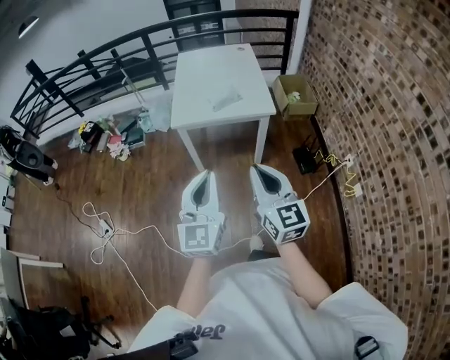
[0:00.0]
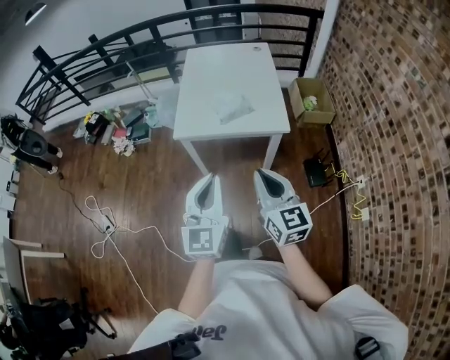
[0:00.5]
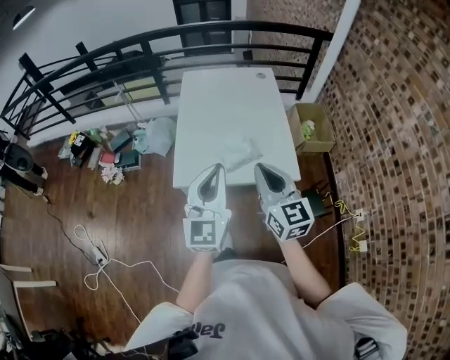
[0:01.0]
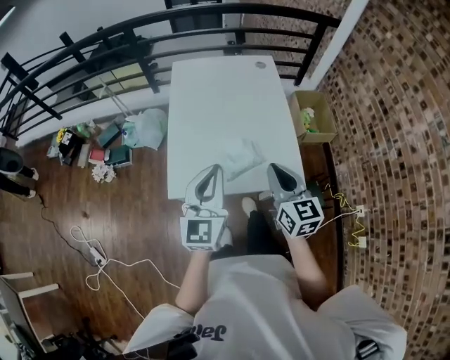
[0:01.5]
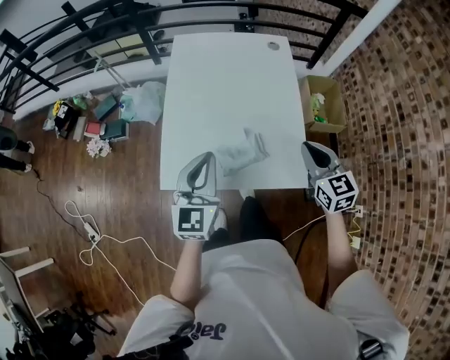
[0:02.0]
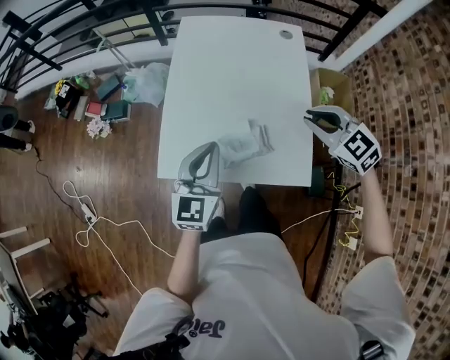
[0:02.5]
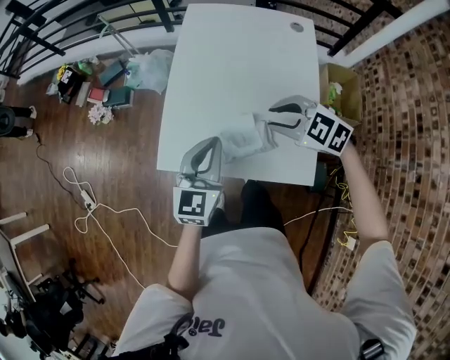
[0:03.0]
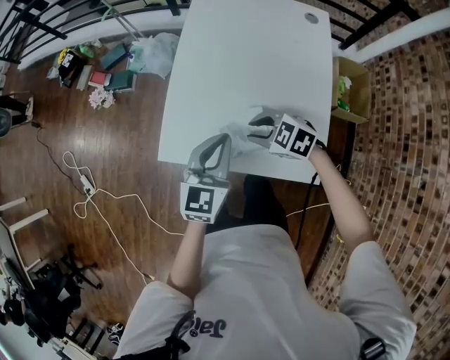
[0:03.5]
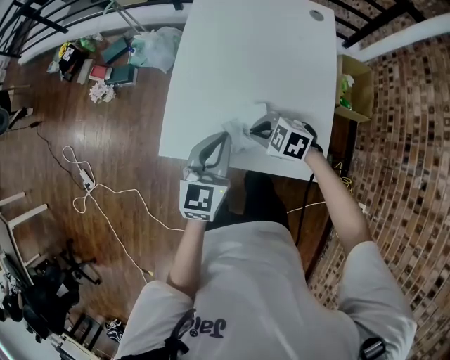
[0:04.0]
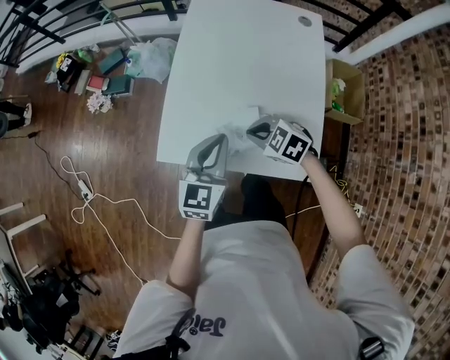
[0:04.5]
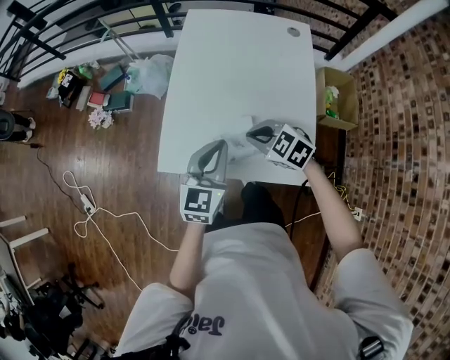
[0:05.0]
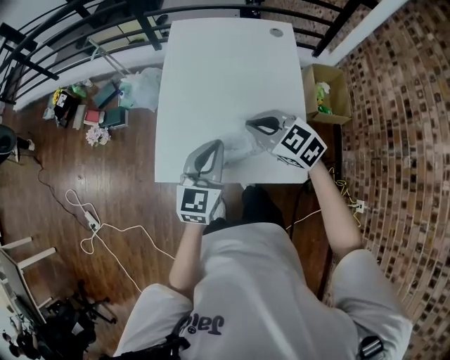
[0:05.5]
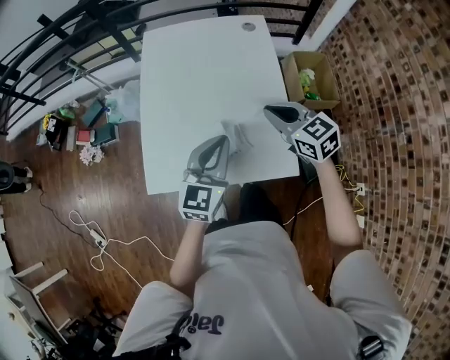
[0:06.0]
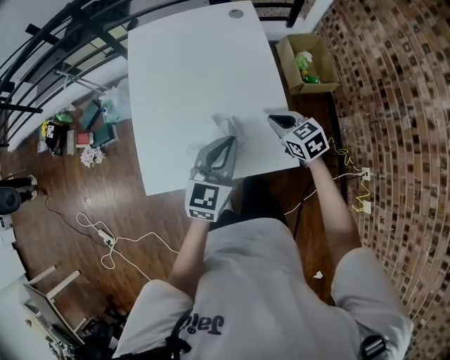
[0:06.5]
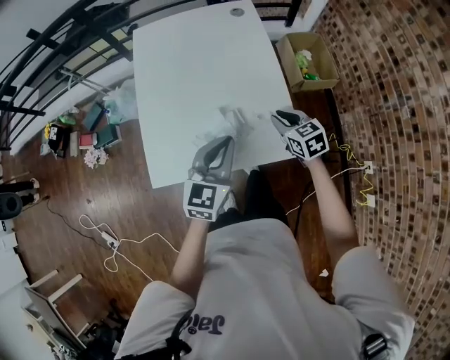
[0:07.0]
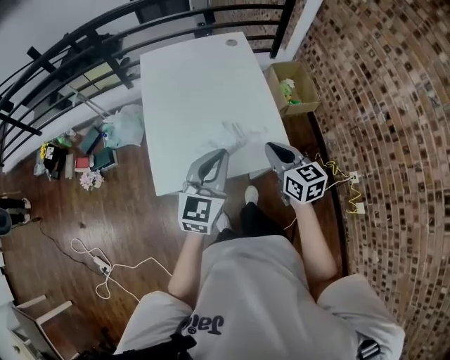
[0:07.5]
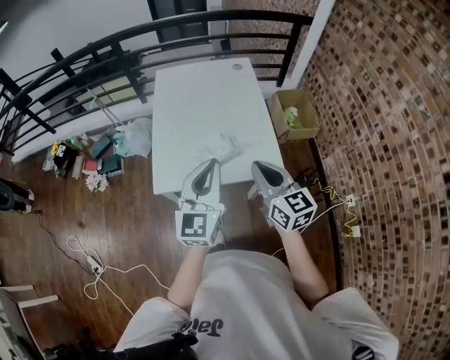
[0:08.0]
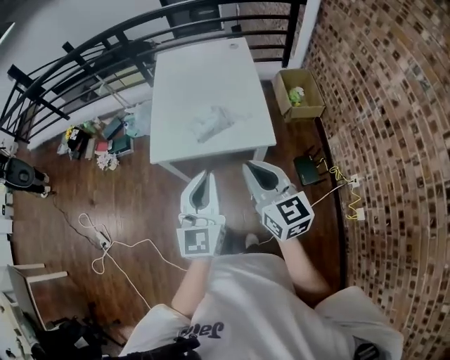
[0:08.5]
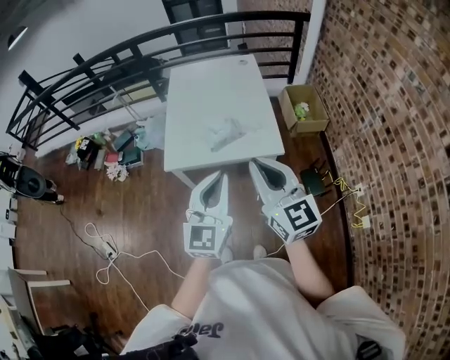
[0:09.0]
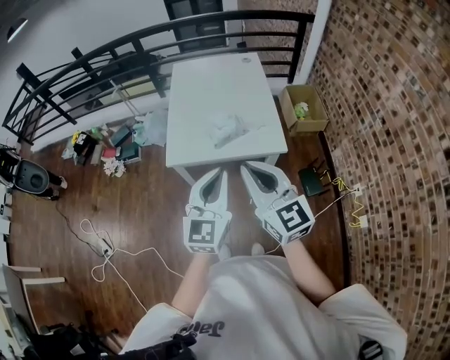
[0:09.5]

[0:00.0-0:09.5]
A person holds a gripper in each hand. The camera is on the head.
0:00.0 to 0:02.0: The two grippers travel together, forward, some 60 cm. The right gripper turns by about 30 degrees.
0:02.0 to 0:04.0: The left gripper travels downward by about 10 cm. Meanwhile the right gripper travels downward by roughly 20 cm, tilts its fingers about 30 degrees downward, and opens, then closes once more.
0:04.0 to 0:05.5: The right gripper moves upward, roughly 15 cm, and rotates roughly 30 degrees; the left gripper changes place by about 5 cm.
0:05.5 to 0:07.5: The left gripper changes place by some 10 cm. The right gripper travels downward and back again, approximately 10 cm each way, and changes its angle by some 50 degrees.
0:07.5 to 0:09.5: The right gripper goes approximately 30 cm backward and upward, and swivels about 30 degrees, while the left gripper shifts some 25 cm backward.

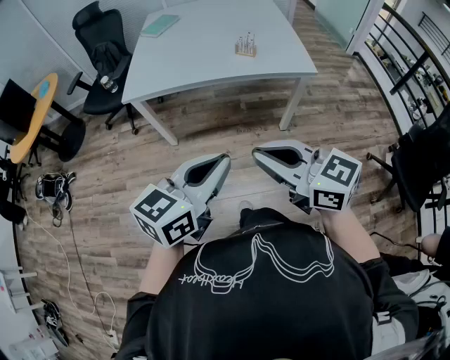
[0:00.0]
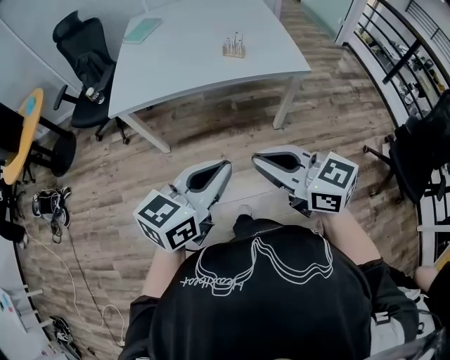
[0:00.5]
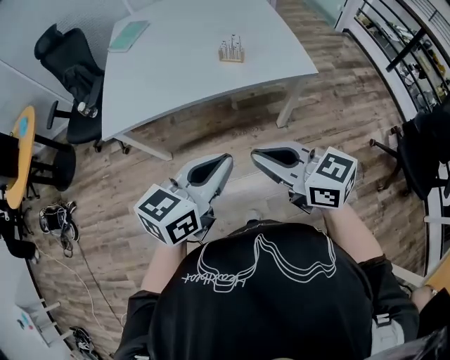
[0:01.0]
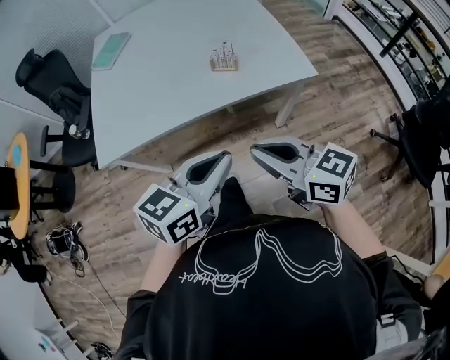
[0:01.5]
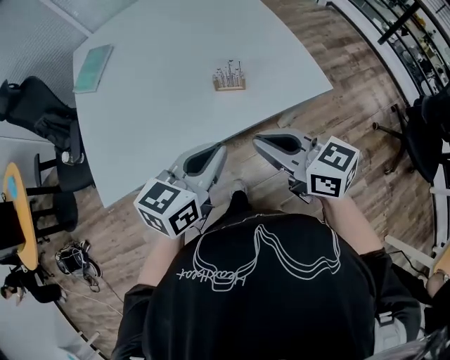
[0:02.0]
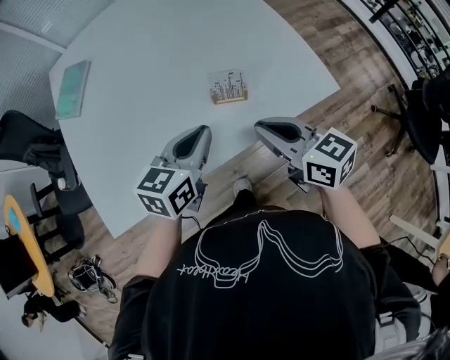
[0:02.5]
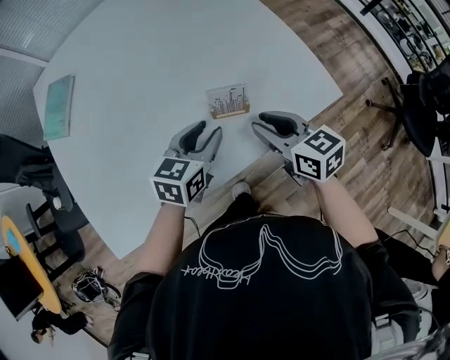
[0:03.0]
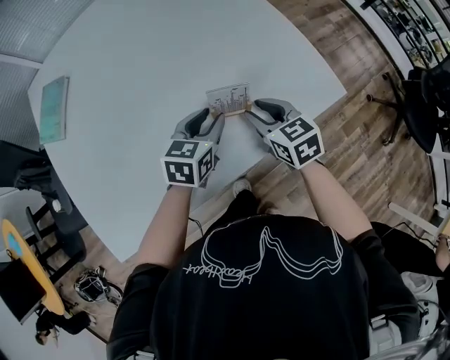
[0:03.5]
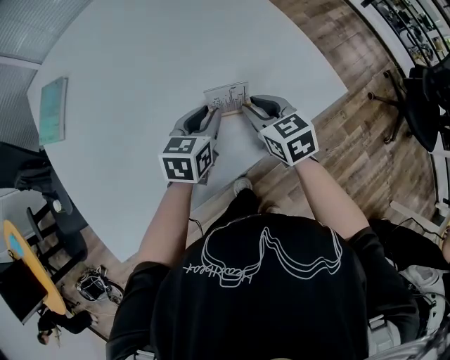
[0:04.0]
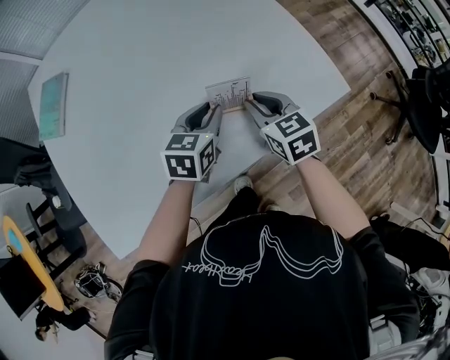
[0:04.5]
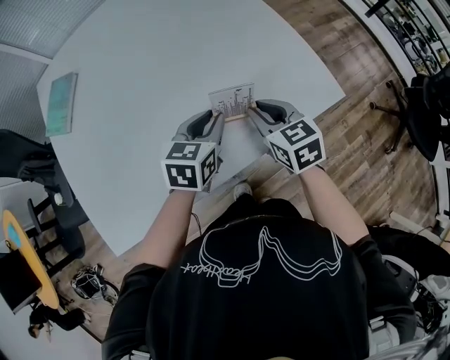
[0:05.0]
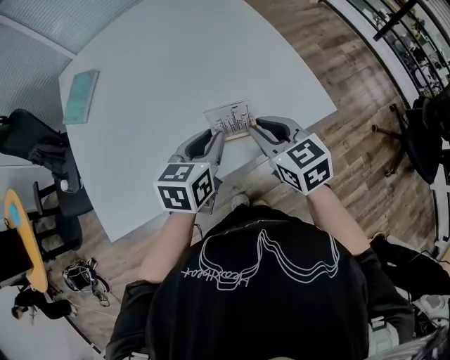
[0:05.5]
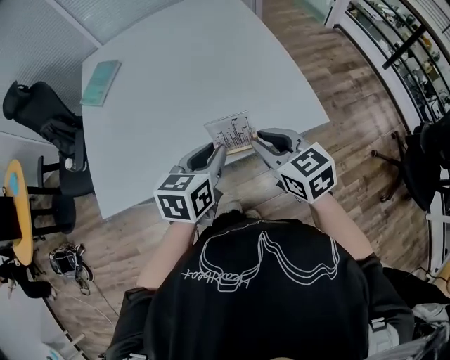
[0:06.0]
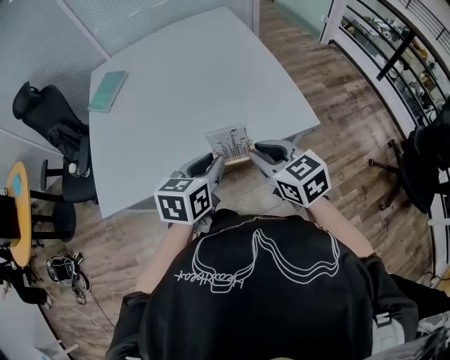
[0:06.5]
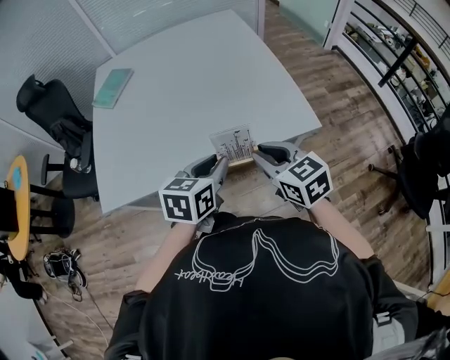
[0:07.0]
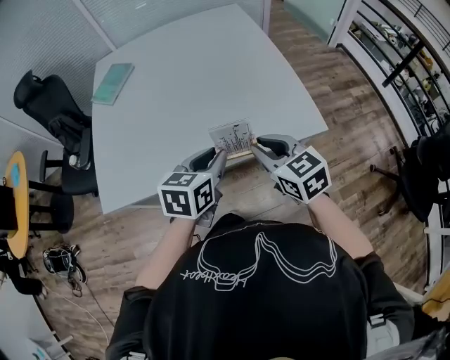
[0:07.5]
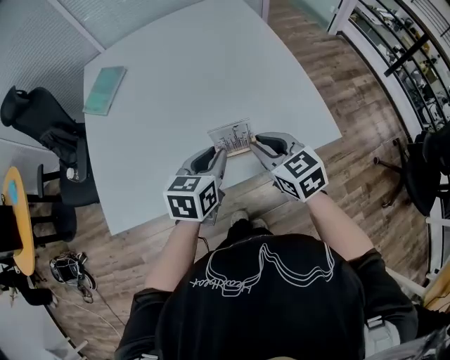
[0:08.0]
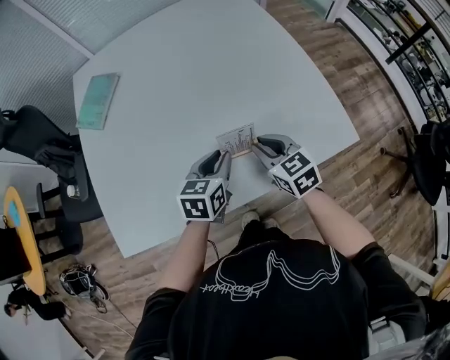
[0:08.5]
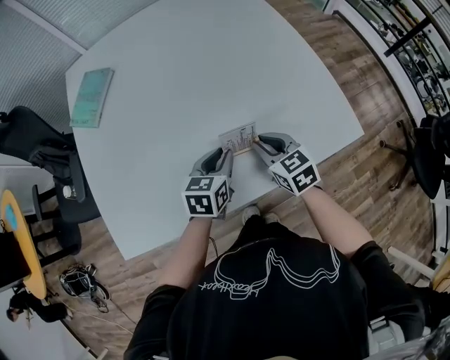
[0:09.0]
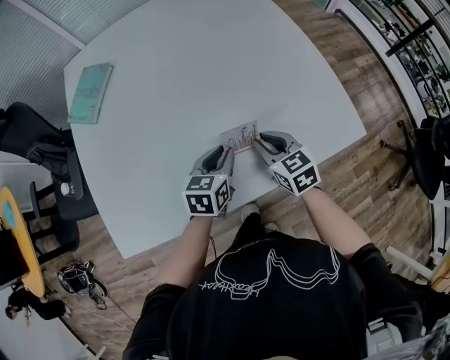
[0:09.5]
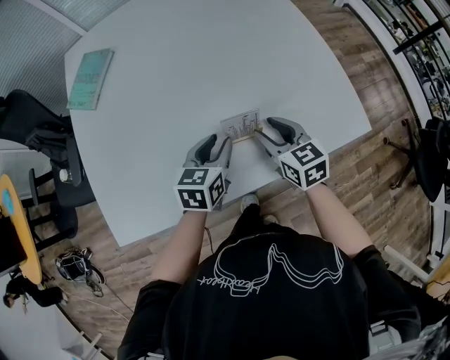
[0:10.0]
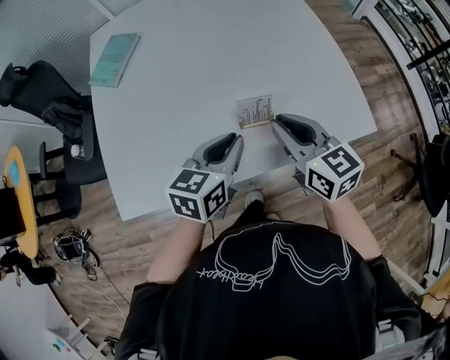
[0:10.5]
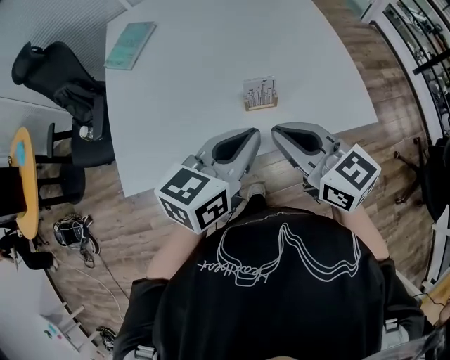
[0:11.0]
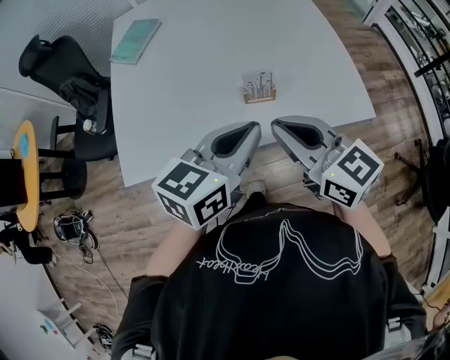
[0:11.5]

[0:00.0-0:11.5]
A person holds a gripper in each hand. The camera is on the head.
0:00.0 to 0:02.0: The pair of grippers is taken forward, some 50 cm. The right gripper swivels approximately 20 degrees.
0:02.0 to 0:04.0: Both grippers travel together forward and downward, about 30 cm. The right gripper swivels some 40 degrees, and opens its fingers, while the left gripper opens its fingers.
0:04.0 to 0:06.0: The right gripper goes roughly 20 cm upward and backward, and swivels some 20 degrees. Meanwhile the left gripper goes some 25 cm backward and upward.
0:07.5 to 0:09.5: The right gripper moves downward, forward and to the left, some 25 cm, while the left gripper goes some 25 cm forward, downward and to the left.
0:09.5 to 0:11.5: Both grippers travel together upward and backward, some 30 cm. The right gripper swivels some 30 degrees, and opens, then closes once more.

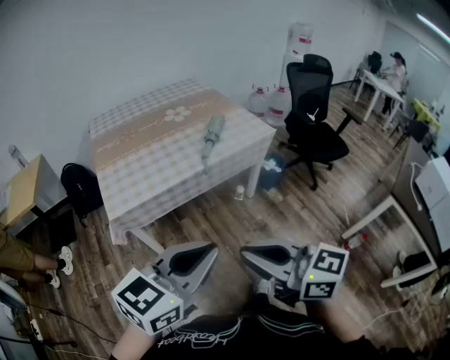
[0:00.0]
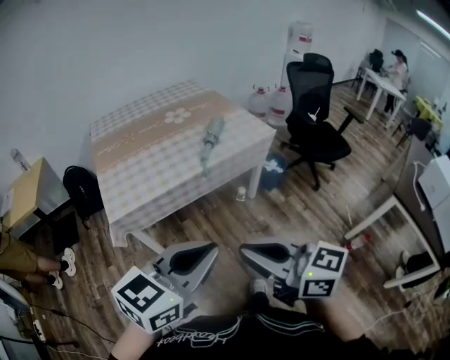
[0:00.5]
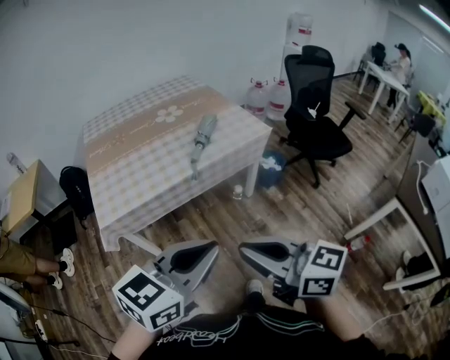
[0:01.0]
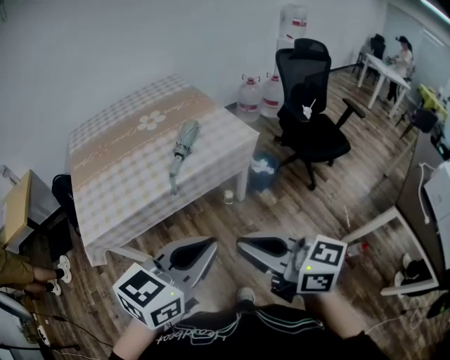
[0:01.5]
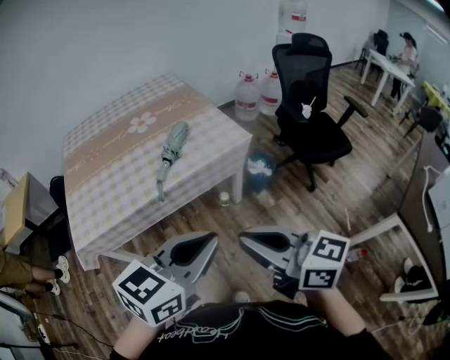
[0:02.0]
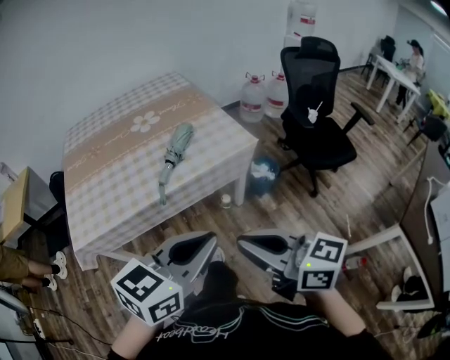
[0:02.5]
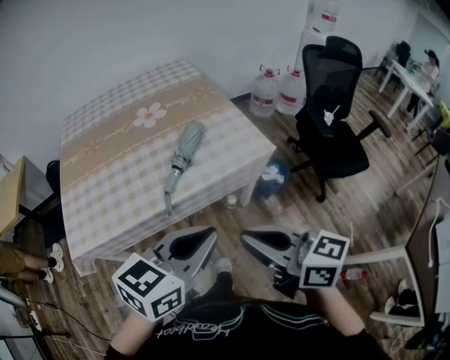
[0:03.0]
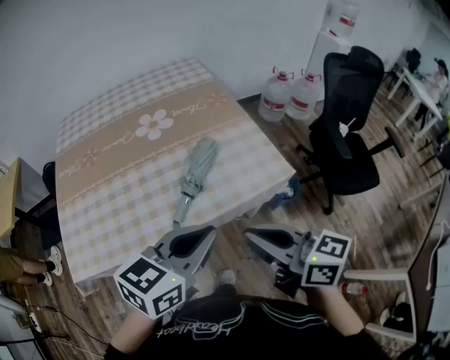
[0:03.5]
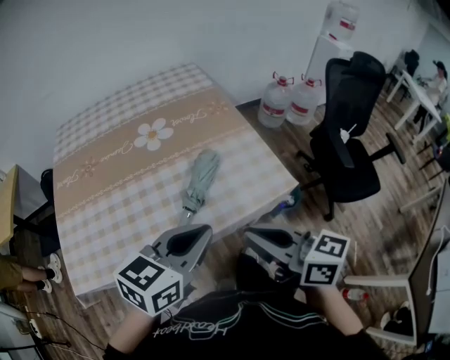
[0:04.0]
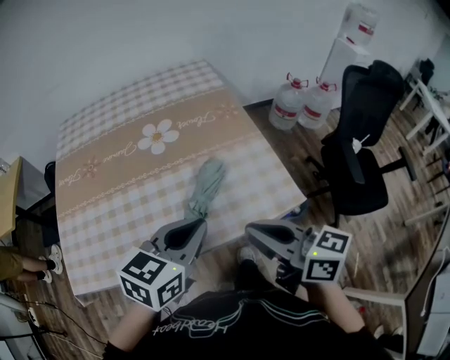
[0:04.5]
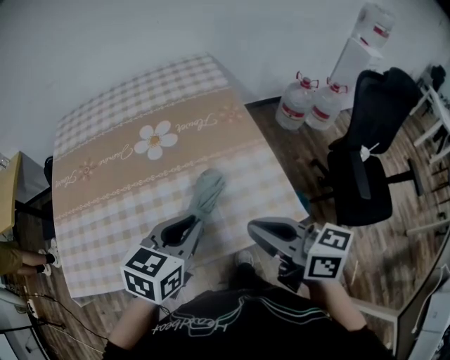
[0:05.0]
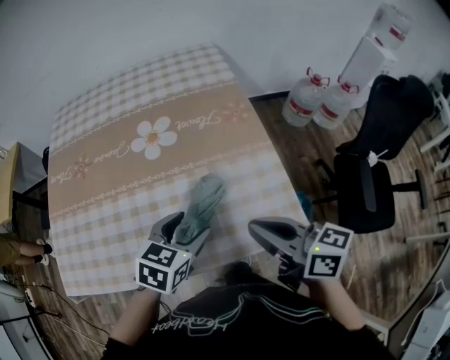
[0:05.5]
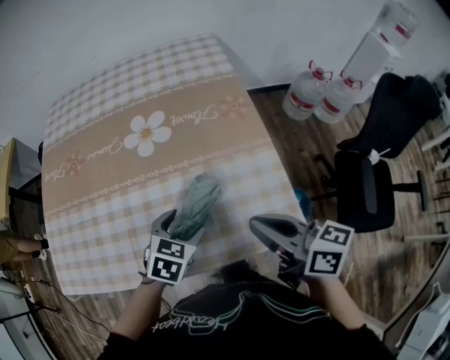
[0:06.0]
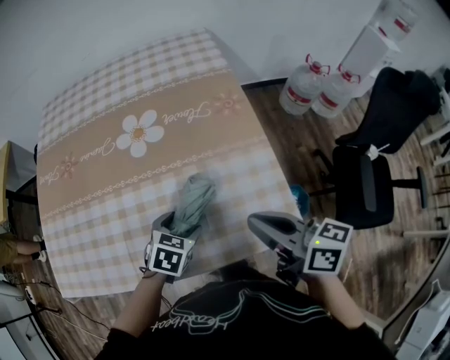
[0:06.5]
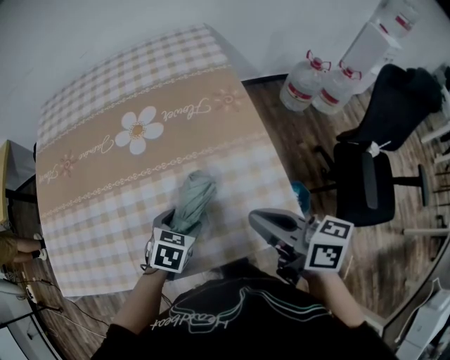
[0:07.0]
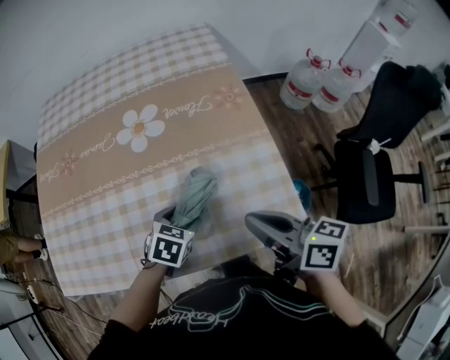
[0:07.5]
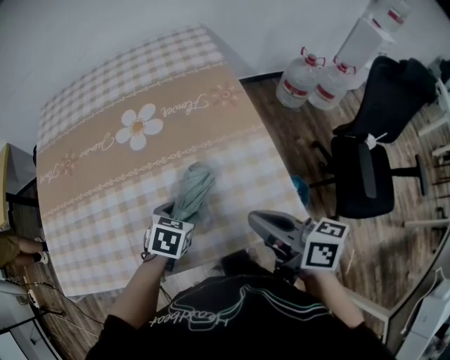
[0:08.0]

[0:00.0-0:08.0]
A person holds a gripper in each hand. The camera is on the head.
0:00.0 to 0:02.0: The grippers both shift to the right and forward by roughly 30 cm.
0:02.0 to 0:04.0: Both grippers move forward, roughly 35 cm.
0:04.0 to 0:06.0: The right gripper travels forward and to the right by about 20 cm; the left gripper is displaced downward and forward by roughly 30 cm, tilts its fingers some 30 degrees downward, and opens its fingers.
0:06.0 to 0:08.0: The left gripper goes roughly 5 cm downward.
